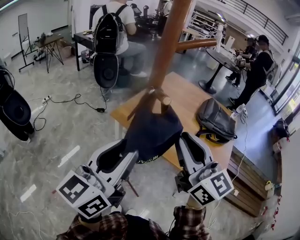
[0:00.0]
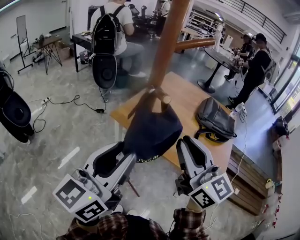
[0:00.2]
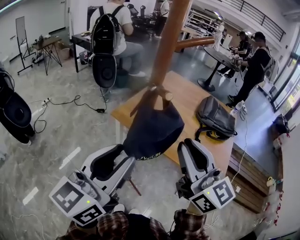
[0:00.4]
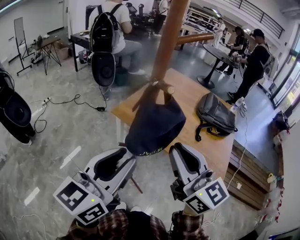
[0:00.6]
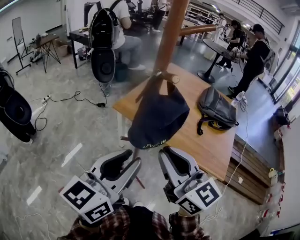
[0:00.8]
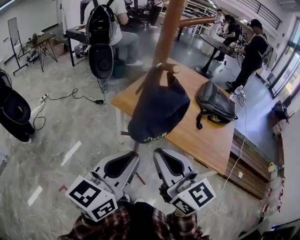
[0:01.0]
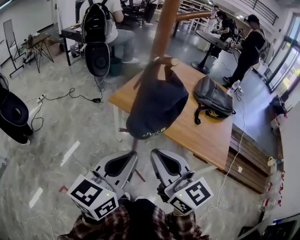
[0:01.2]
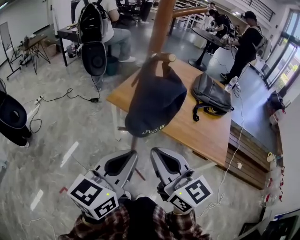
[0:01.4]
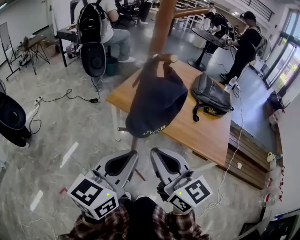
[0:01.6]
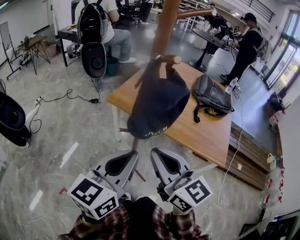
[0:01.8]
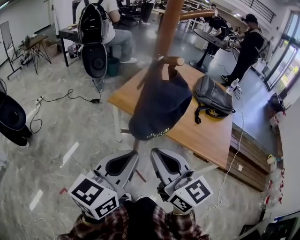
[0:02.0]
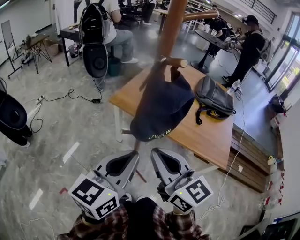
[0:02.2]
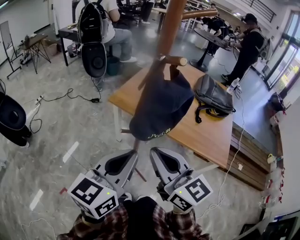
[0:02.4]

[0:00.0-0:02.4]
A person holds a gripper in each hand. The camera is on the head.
0.0 to 1.2 s: The right gripper travels backward, downward and to the left by approximately 15 cm, while the left gripper goes about 10 cm downward and backward, and closes.
1.2 to 2.4 s: The grippers make only small movements.

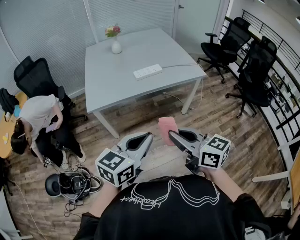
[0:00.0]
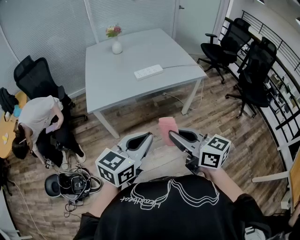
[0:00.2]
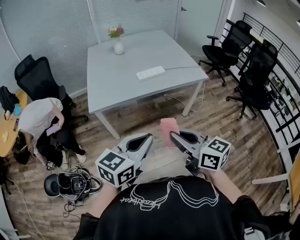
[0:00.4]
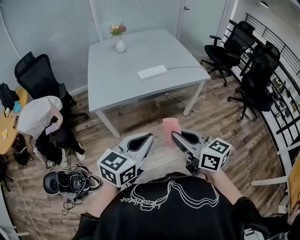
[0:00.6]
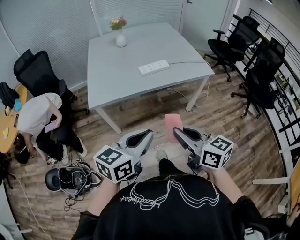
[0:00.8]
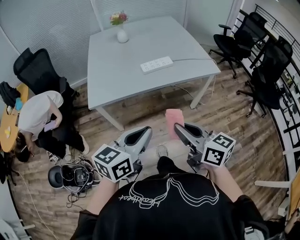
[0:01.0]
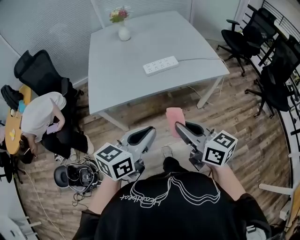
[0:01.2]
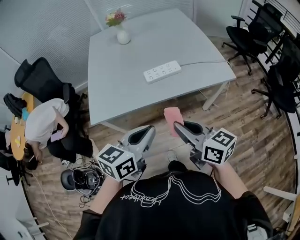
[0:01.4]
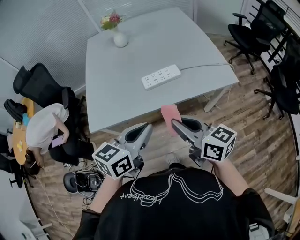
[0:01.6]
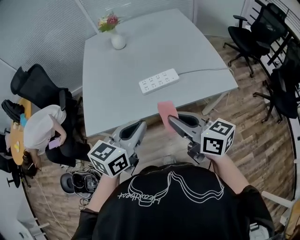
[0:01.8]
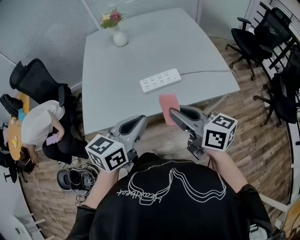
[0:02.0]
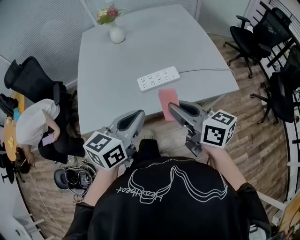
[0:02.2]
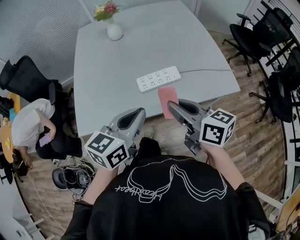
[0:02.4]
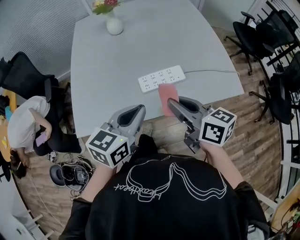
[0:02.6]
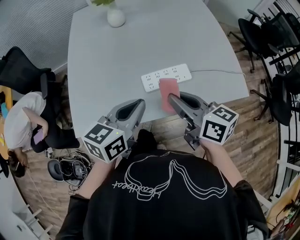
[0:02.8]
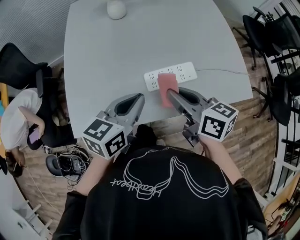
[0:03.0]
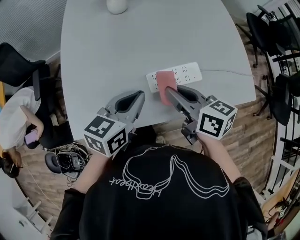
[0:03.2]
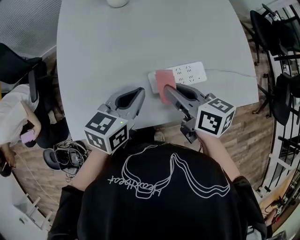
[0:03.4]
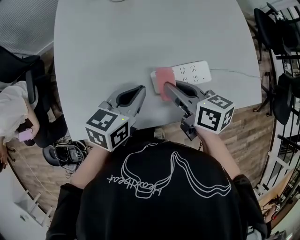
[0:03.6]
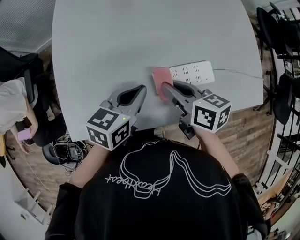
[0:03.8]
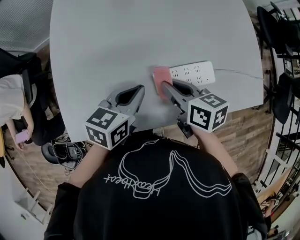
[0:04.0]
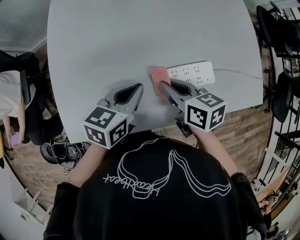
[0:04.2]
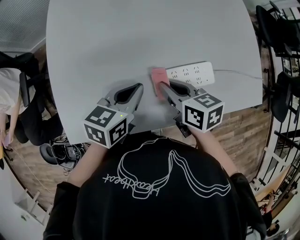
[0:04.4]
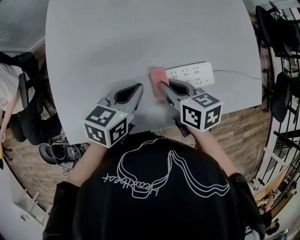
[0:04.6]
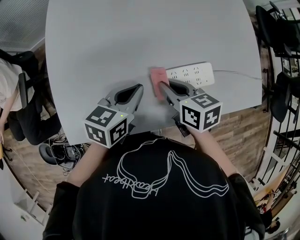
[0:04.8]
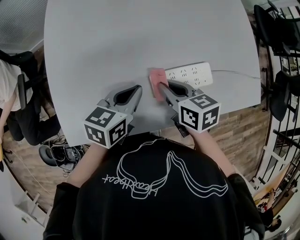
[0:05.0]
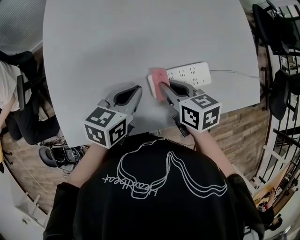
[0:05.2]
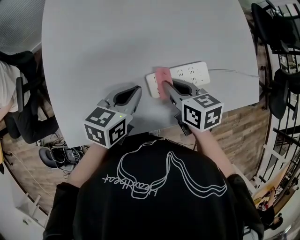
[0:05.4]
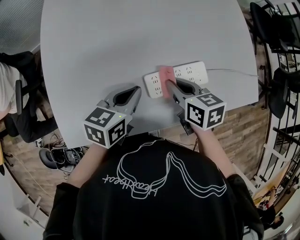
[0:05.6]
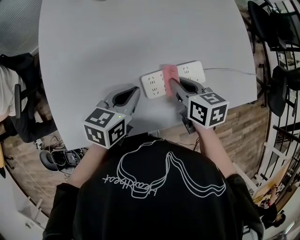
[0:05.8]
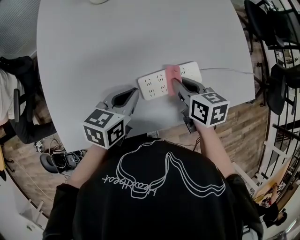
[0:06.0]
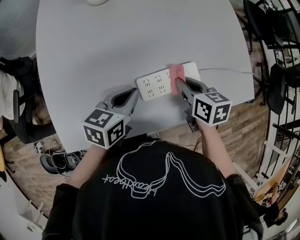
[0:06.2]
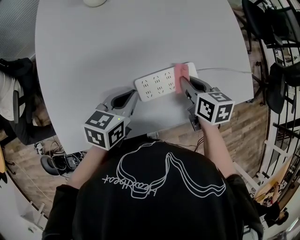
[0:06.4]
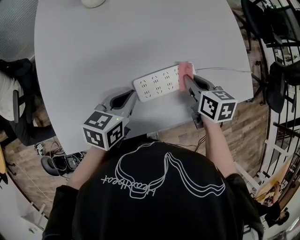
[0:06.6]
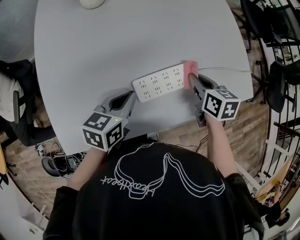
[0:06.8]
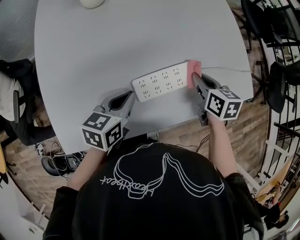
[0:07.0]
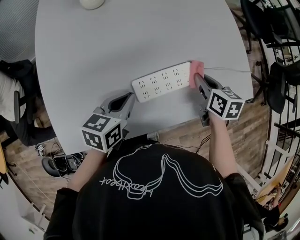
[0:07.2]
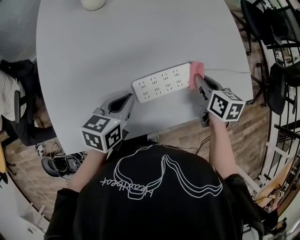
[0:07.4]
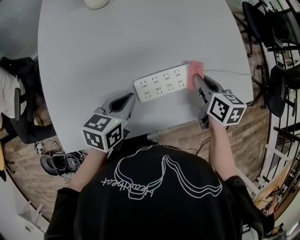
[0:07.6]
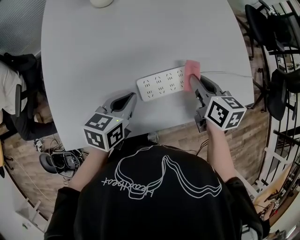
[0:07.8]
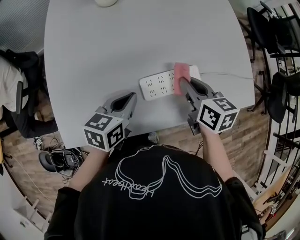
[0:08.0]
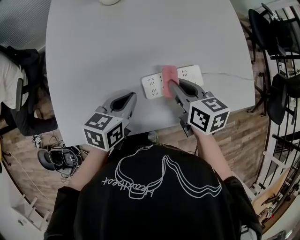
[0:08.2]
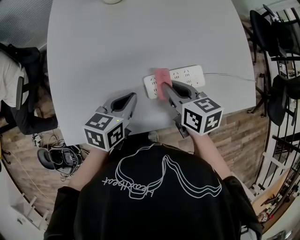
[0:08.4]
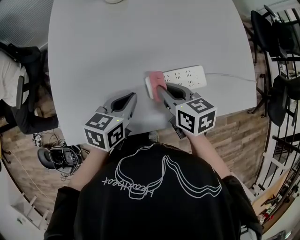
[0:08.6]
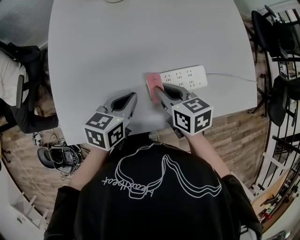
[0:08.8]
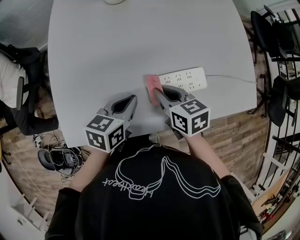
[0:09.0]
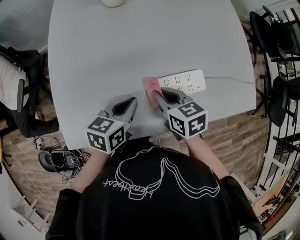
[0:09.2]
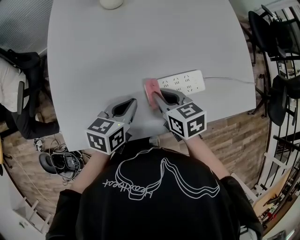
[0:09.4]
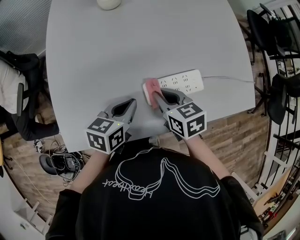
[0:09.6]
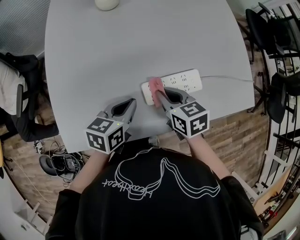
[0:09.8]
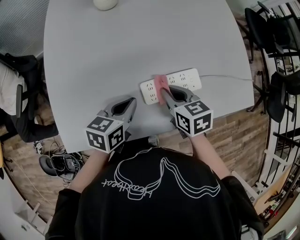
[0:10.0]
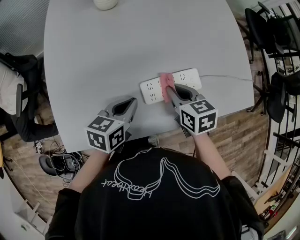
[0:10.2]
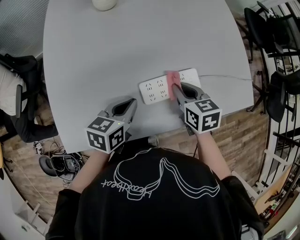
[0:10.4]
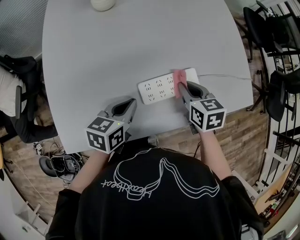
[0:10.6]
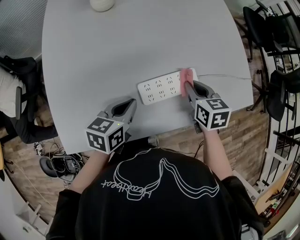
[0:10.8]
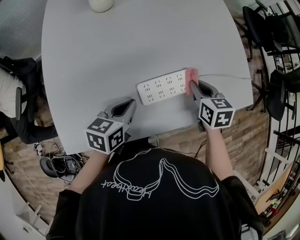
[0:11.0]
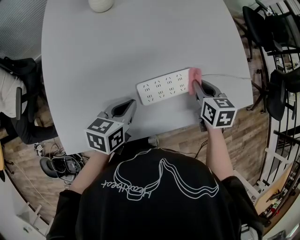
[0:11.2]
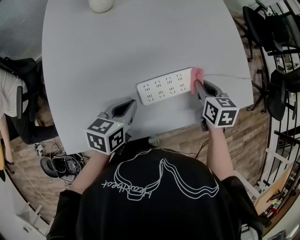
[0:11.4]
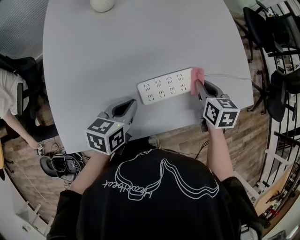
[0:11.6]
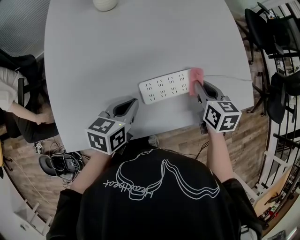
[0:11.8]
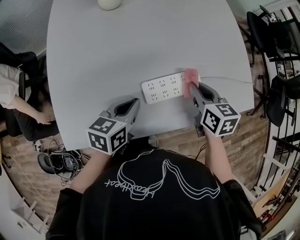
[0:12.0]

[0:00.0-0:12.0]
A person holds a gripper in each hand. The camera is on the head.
0.0 to 1.6 s: The two grippers go approximately 30 cm forward.
1.6 to 3.0 s: The two grippers go about 25 cm forward.
3.0 to 4.4 s: Both grippers move downward and forward, approximately 15 cm. The right gripper rotates about 20 degrees.
4.4 to 6.0 s: The right gripper goes approximately 10 cm to the right.
6.0 to 7.6 s: The right gripper moves to the right, some 10 cm.
7.6 to 9.0 s: The right gripper shifts roughly 20 cm to the left, and turns by about 20 degrees.
9.0 to 10.4 s: The right gripper travels to the right by approximately 10 cm.

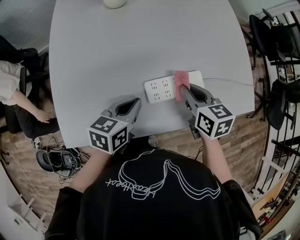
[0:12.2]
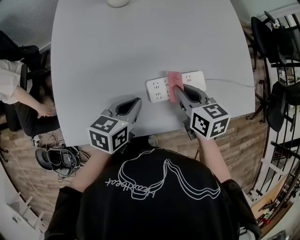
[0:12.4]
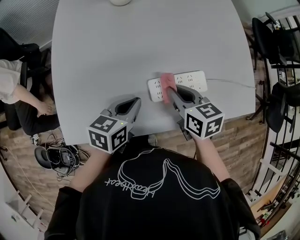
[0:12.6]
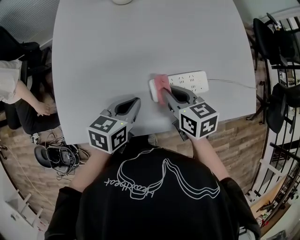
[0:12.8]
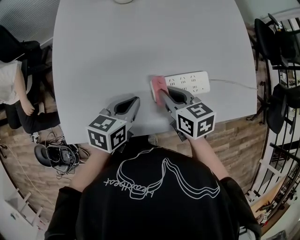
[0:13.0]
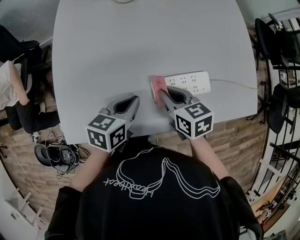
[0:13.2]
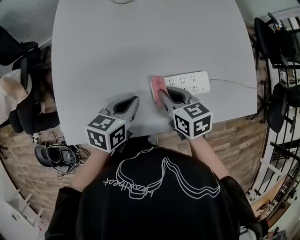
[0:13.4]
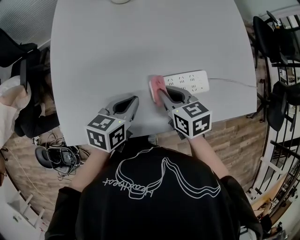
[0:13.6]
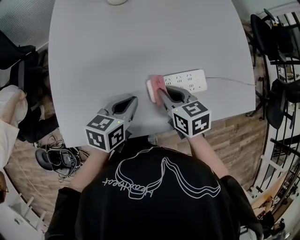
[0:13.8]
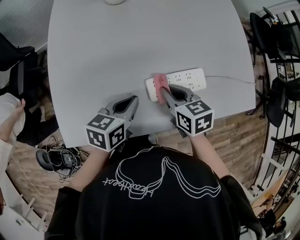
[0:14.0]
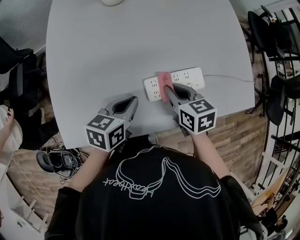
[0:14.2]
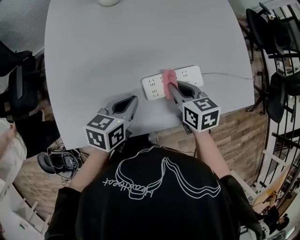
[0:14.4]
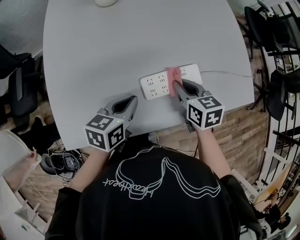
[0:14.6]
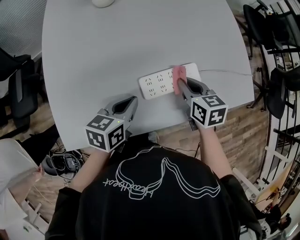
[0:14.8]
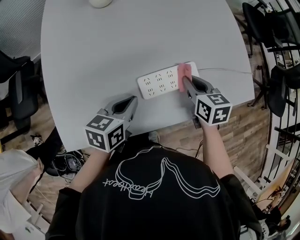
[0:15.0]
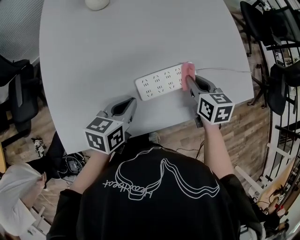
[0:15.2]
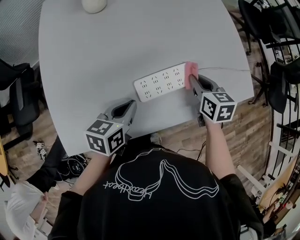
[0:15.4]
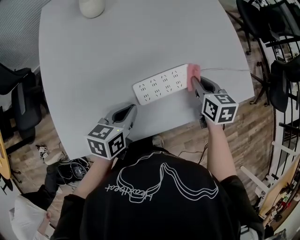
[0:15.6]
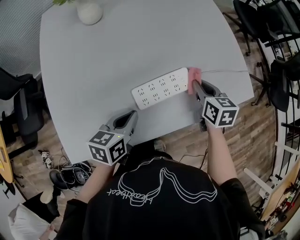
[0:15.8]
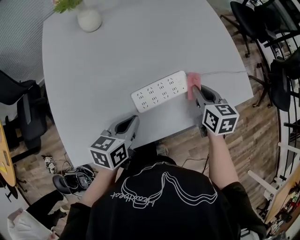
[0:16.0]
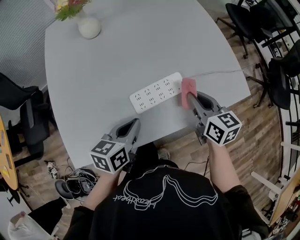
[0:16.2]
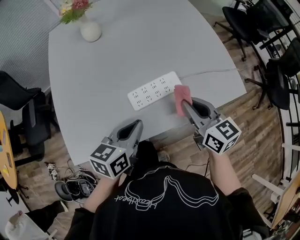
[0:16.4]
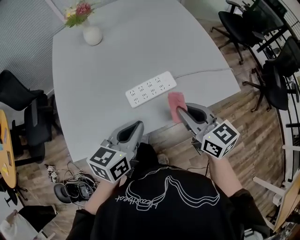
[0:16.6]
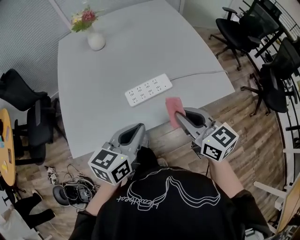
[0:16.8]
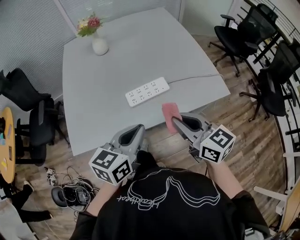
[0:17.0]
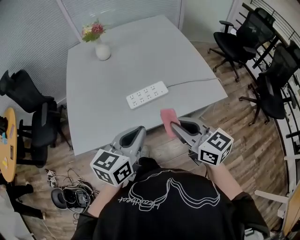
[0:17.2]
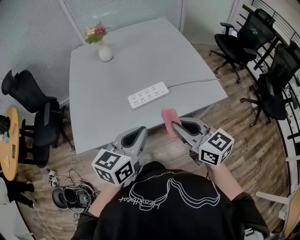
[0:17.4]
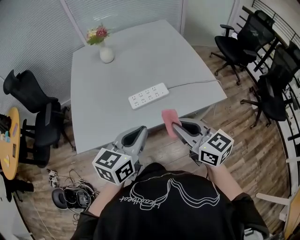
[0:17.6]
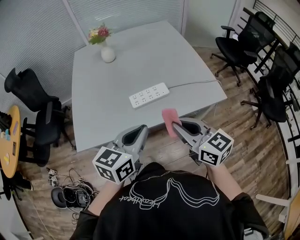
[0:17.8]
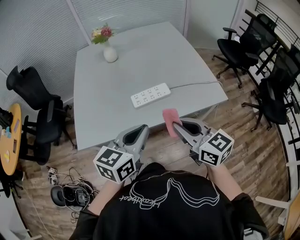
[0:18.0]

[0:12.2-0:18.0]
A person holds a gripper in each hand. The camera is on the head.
12.2 to 13.6 s: The right gripper shifts approximately 10 cm to the left.
13.6 to 15.0 s: The right gripper travels to the right by roughly 15 cm.
15.0 to 16.6 s: The right gripper shifts about 20 cm upward, backward and to the right, and rotates roughly 30 degrees. Meanwhile the left gripper is displaced upward, to the right and backward by some 20 cm.
16.6 to 18.0 s: The two grippers go about 15 cm backward and upward.

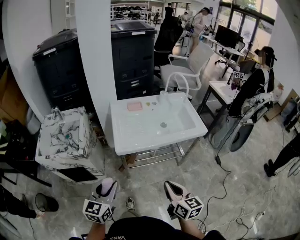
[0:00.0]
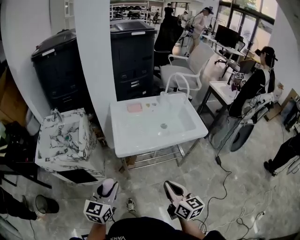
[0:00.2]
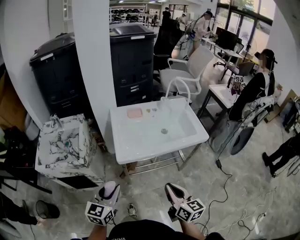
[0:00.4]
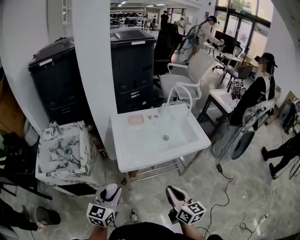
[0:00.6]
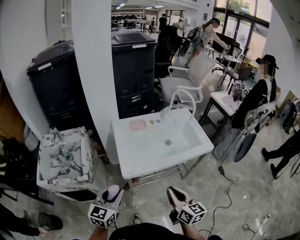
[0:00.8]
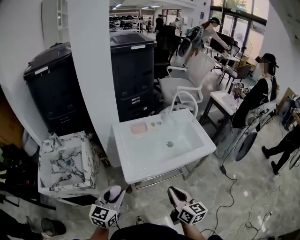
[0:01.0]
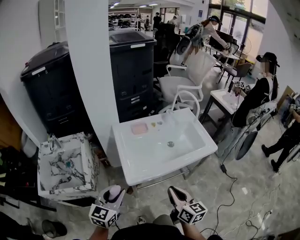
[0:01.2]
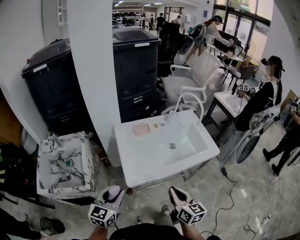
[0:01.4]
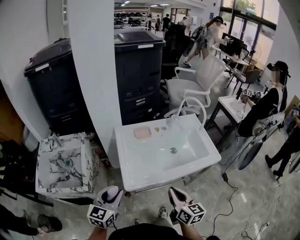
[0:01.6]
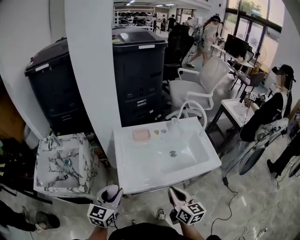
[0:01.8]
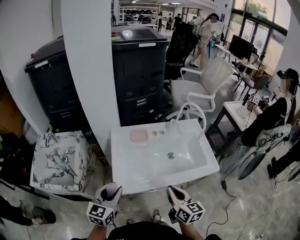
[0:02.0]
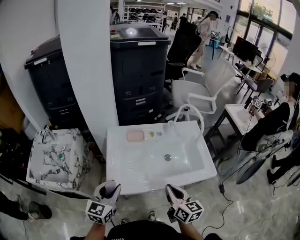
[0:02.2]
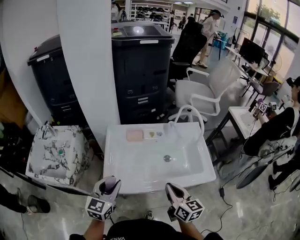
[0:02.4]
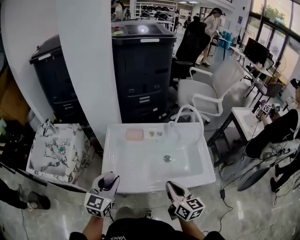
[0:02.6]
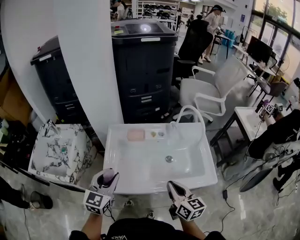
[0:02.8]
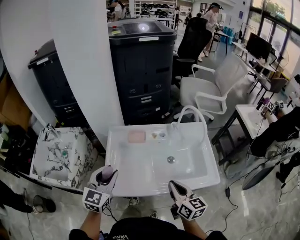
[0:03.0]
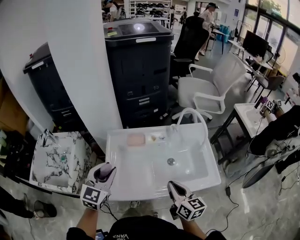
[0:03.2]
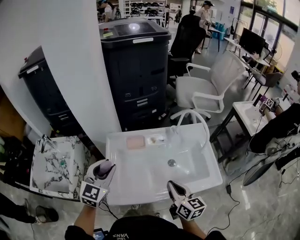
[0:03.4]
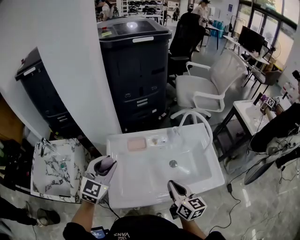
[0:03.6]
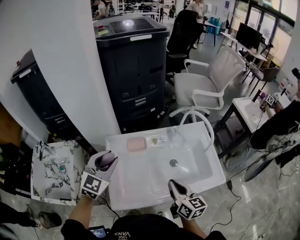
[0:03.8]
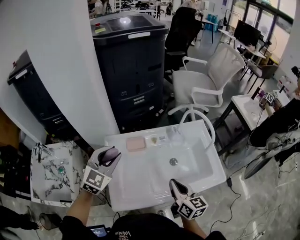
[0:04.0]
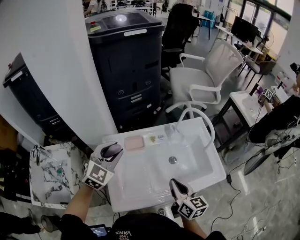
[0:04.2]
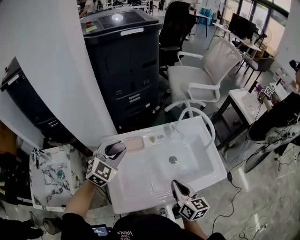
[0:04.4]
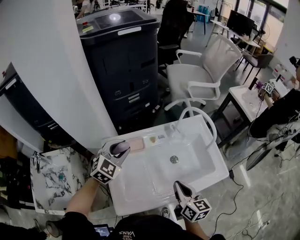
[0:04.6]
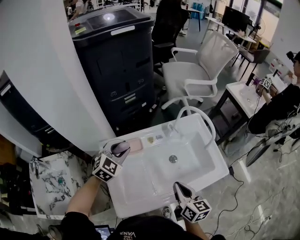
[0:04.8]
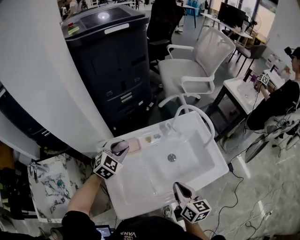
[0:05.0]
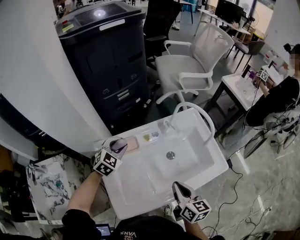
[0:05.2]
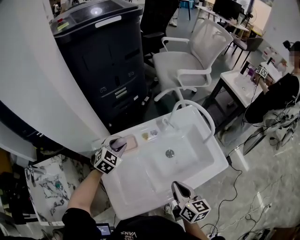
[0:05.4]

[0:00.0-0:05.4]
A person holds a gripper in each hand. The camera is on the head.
0.0 to 1.4 s: Both grippers move forward, approximately 15 cm.
1.4 to 2.8 s: The two grippers go approximately 20 cm forward and to the right.
2.8 to 4.0 s: The right gripper moves forward, roughly 10 cm, while the left gripper goes roughly 20 cm forward, and rotates some 30 degrees.
4.0 to 5.4 s: The left gripper goes some 20 cm downward and forward, and changes its angle by some 20 degrees.
